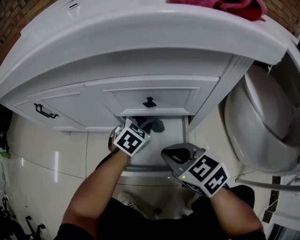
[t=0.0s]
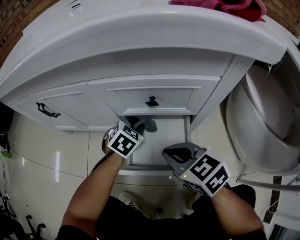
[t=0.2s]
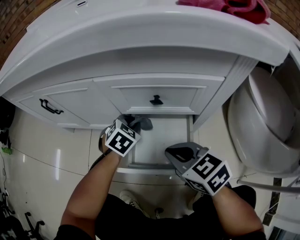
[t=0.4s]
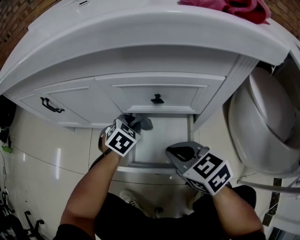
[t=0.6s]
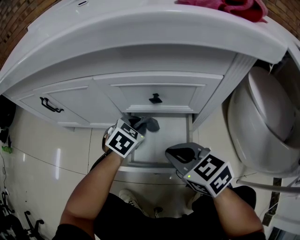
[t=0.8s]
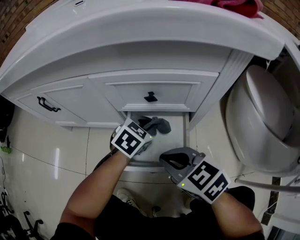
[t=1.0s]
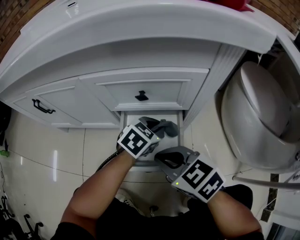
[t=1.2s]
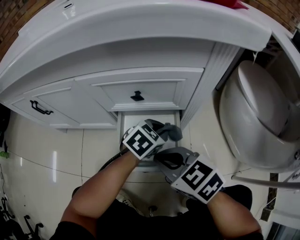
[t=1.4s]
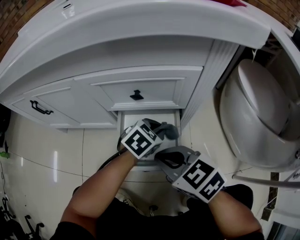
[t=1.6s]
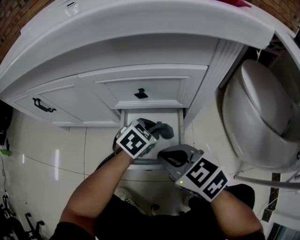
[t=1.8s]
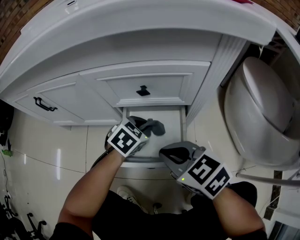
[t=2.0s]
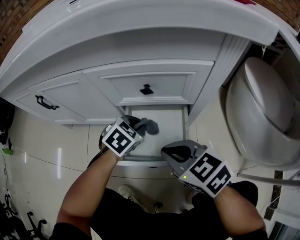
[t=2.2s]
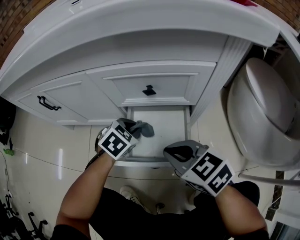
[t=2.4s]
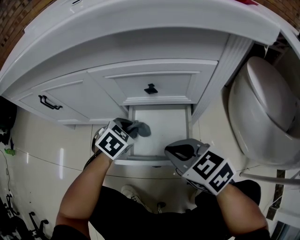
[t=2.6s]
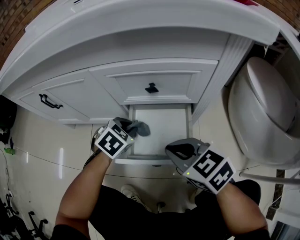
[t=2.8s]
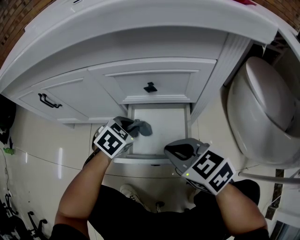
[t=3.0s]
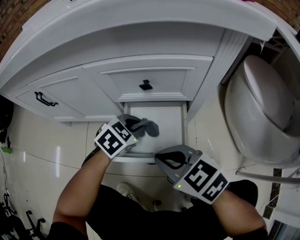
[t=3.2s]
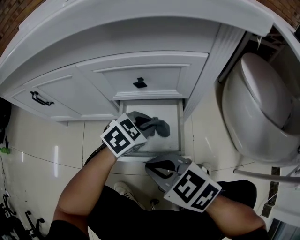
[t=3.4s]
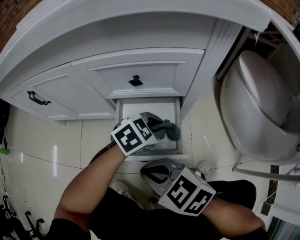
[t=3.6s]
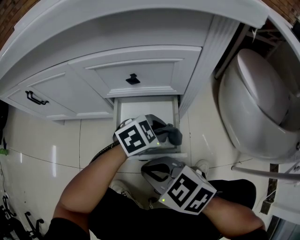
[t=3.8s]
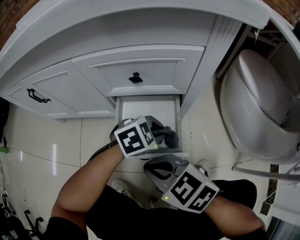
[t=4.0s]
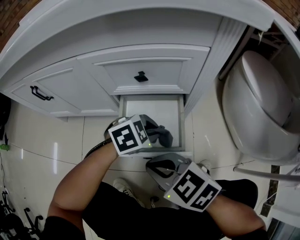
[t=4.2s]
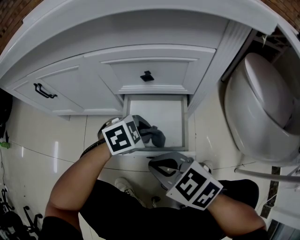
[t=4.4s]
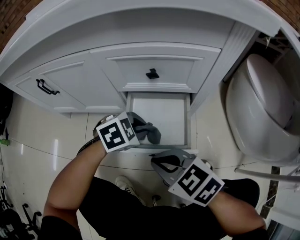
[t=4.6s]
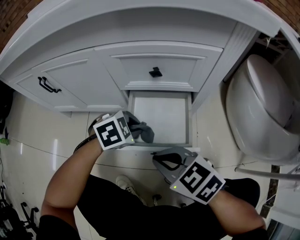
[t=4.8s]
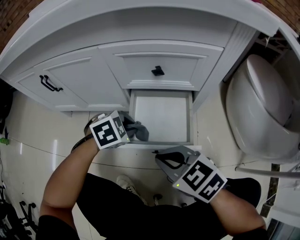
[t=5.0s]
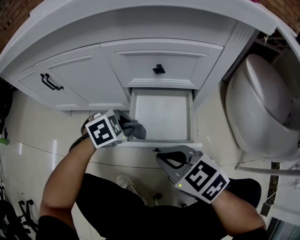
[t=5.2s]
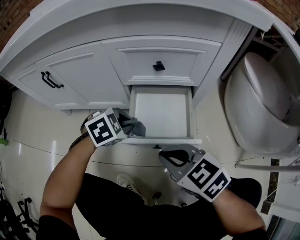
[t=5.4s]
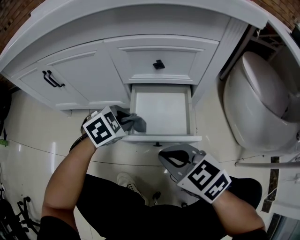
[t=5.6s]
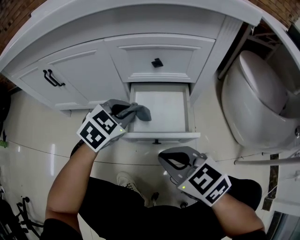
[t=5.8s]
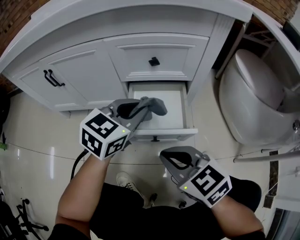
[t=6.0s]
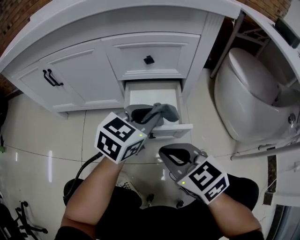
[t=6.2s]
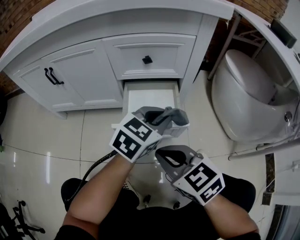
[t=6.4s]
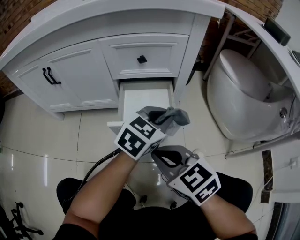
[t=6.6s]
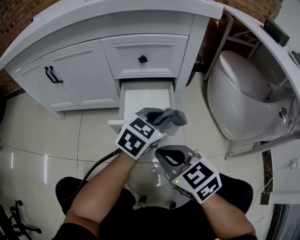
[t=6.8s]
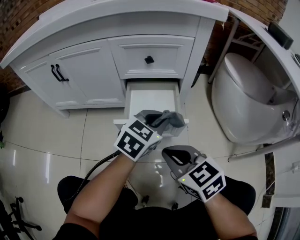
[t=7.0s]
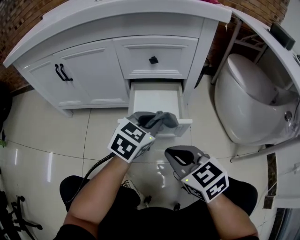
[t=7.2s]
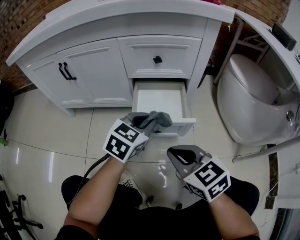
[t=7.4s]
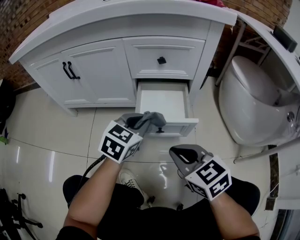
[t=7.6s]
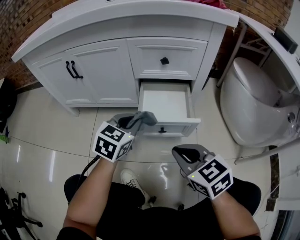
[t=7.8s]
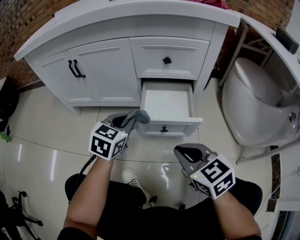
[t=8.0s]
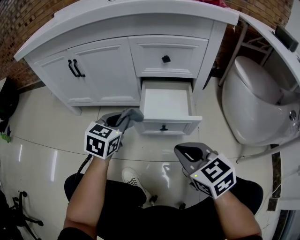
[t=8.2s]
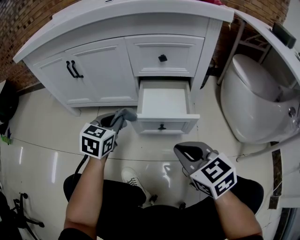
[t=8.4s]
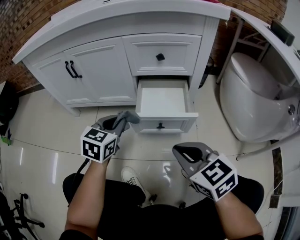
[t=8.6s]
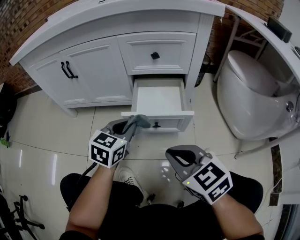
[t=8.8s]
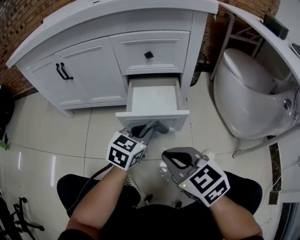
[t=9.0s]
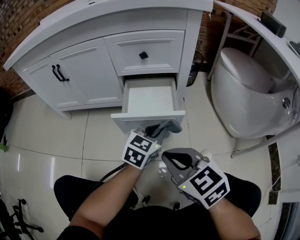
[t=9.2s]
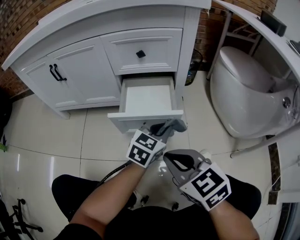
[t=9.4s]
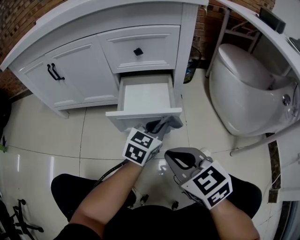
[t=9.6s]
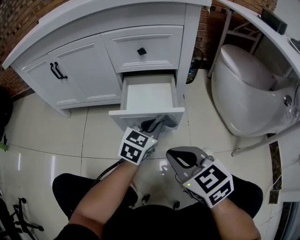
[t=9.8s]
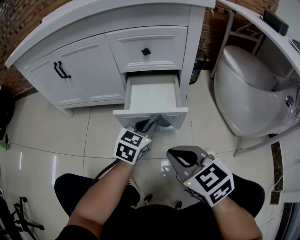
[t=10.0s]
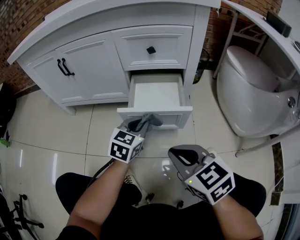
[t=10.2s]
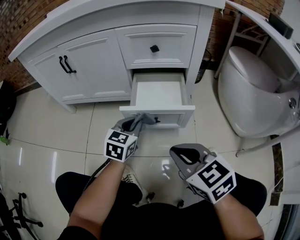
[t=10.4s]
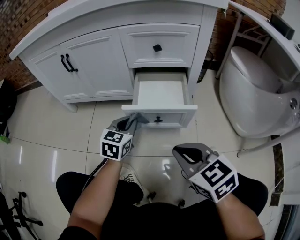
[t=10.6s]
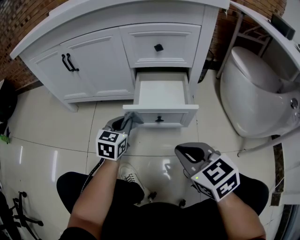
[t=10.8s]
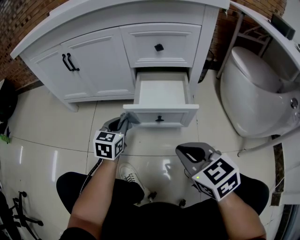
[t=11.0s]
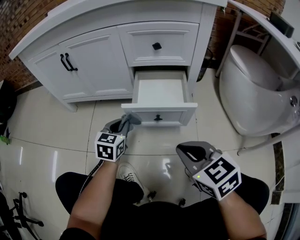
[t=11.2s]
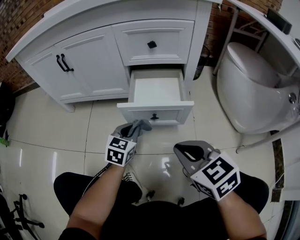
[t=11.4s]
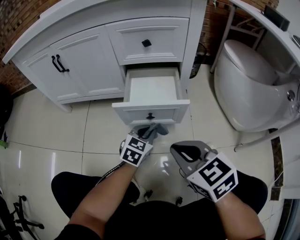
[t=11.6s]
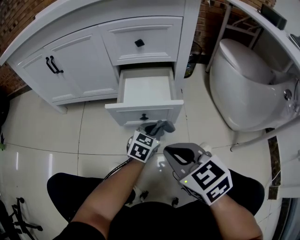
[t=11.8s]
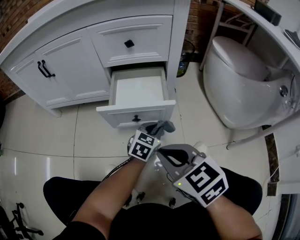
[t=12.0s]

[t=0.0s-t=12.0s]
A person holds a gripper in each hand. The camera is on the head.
t=0.0s to t=1.6s: The left gripper travels to the right and backward by approximately 10 cm.
t=1.6s to t=3.0s: The left gripper goes some 15 cm to the left.
t=3.0s to t=4.4s: The left gripper swivels some 30 degrees; the right gripper shifts by some 10 cm.
t=4.4s to t=6.0s: The left gripper moves upward, approximately 15 cm, and points its fingers roughly 30 degrees further upward. The right gripper ends up some 5 cm from where it was.
t=6.0s to t=7.6s: The left gripper shifts approximately 5 cm backward, and reaches roughly 10 cm to the right, then returns, while the right gripper ends up some 5 cm from where it was.
t=7.6s to t=9.0s: The left gripper goes to the left and returns, roughly 10 cm each way.
t=9.0s to t=10.4s: The left gripper travels to the left by roughly 5 cm.
t=10.4s to t=12.0s: The left gripper goes approximately 20 cm to the right and downward.

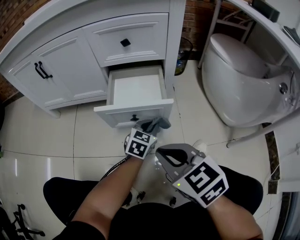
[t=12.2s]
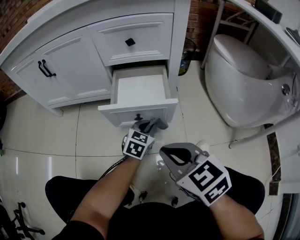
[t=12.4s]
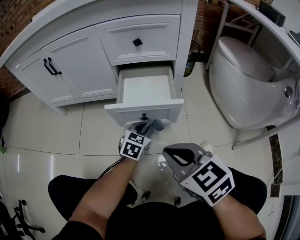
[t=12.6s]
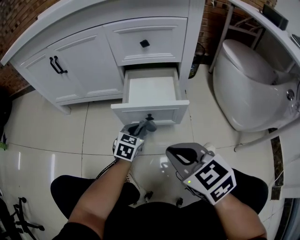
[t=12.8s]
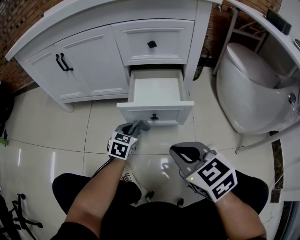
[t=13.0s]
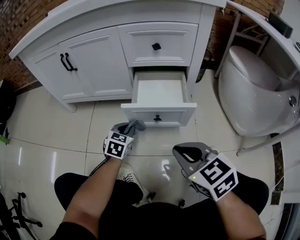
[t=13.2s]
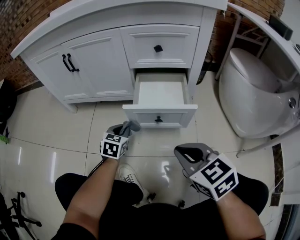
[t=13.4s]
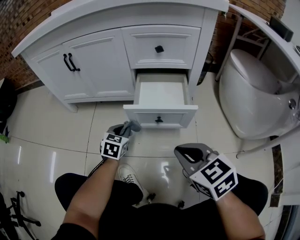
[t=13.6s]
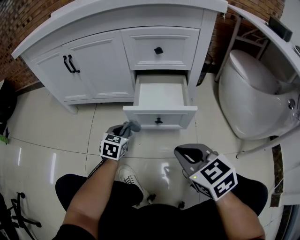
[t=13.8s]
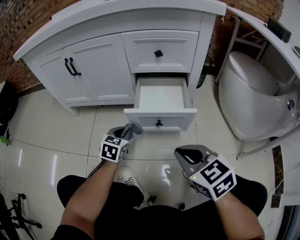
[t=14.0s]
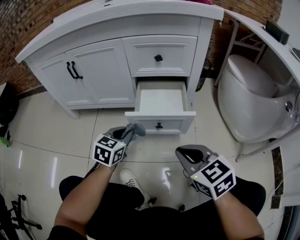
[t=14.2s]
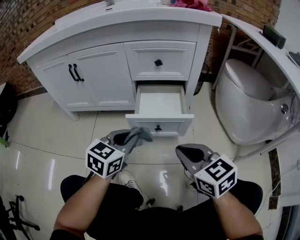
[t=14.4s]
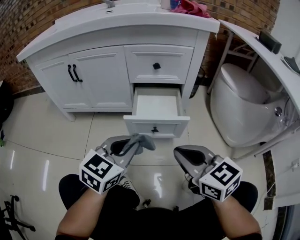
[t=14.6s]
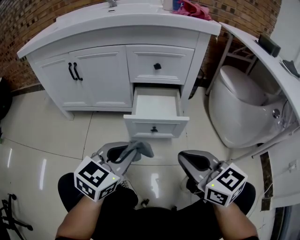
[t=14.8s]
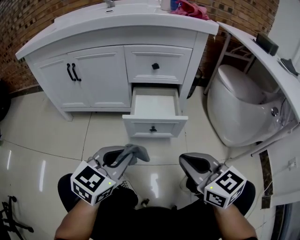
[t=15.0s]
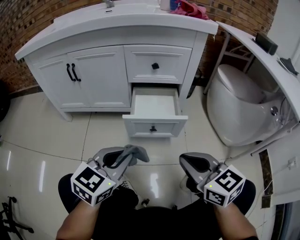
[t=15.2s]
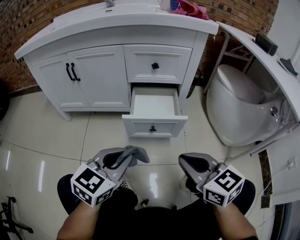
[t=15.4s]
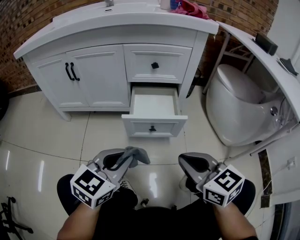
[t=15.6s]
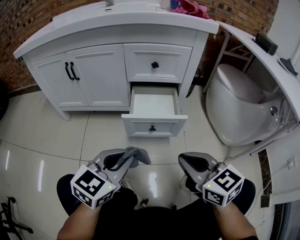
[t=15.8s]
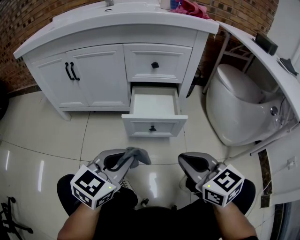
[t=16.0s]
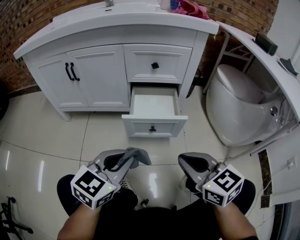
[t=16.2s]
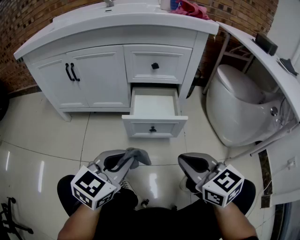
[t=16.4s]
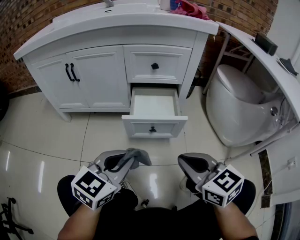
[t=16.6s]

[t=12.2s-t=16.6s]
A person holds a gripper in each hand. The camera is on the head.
t=12.2s to t=13.6s: The left gripper travels to the left by approximately 25 cm.
t=13.6s to t=15.2s: The left gripper heads upward and backward, covering some 25 cm, and swivels some 30 degrees. The right gripper shifts roughly 5 cm upward.
t=15.2s to t=16.6s: Neither gripper changes place.

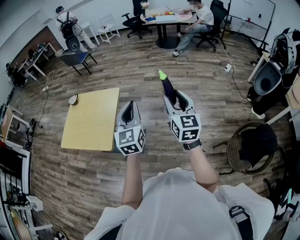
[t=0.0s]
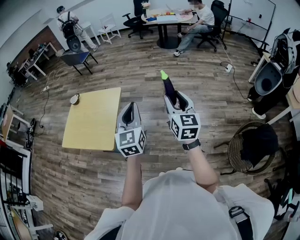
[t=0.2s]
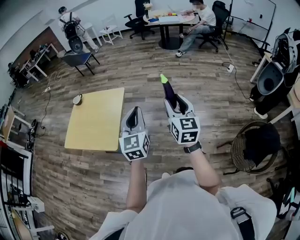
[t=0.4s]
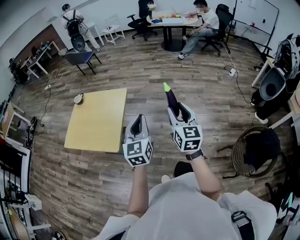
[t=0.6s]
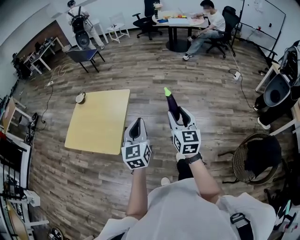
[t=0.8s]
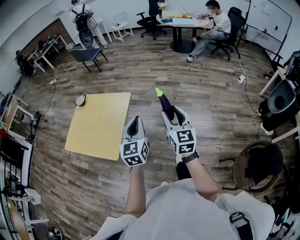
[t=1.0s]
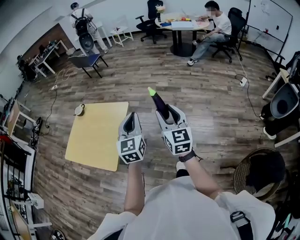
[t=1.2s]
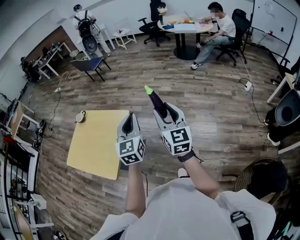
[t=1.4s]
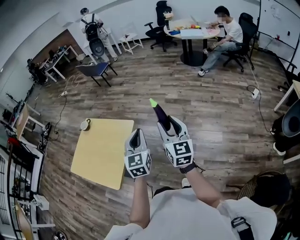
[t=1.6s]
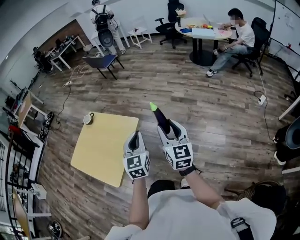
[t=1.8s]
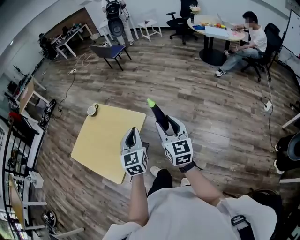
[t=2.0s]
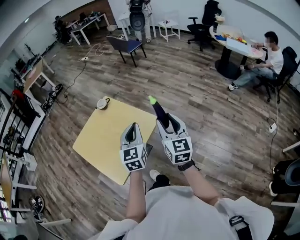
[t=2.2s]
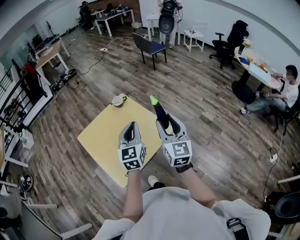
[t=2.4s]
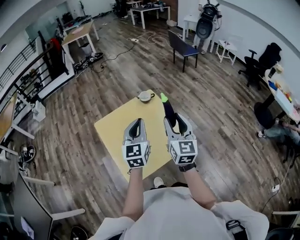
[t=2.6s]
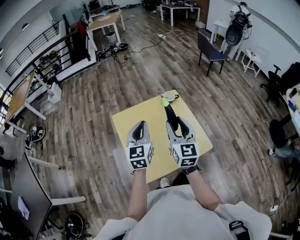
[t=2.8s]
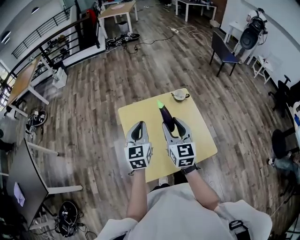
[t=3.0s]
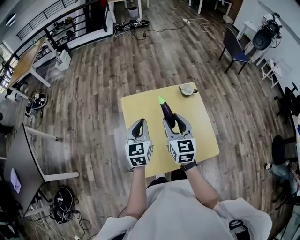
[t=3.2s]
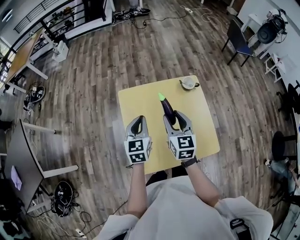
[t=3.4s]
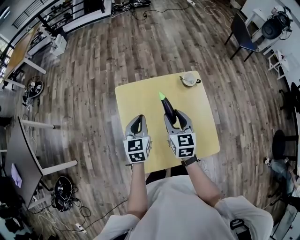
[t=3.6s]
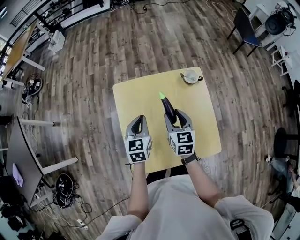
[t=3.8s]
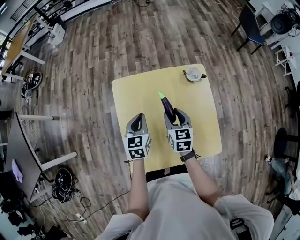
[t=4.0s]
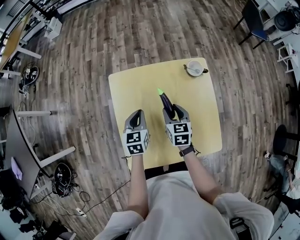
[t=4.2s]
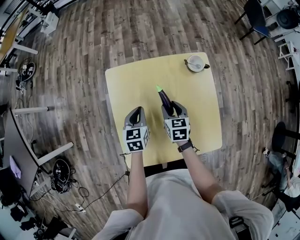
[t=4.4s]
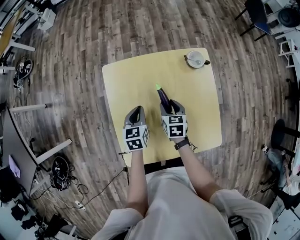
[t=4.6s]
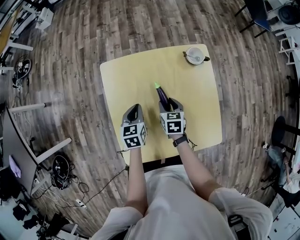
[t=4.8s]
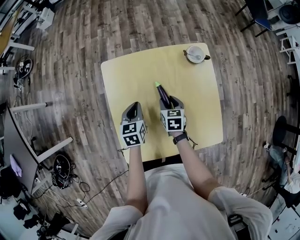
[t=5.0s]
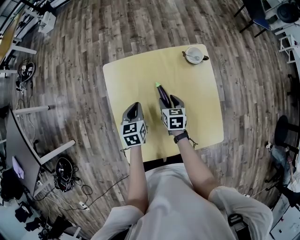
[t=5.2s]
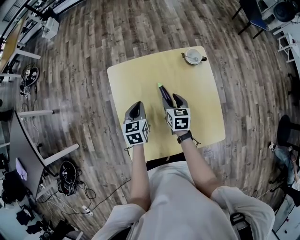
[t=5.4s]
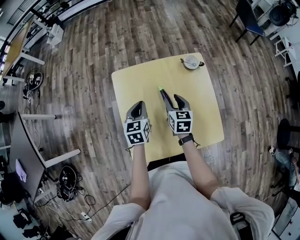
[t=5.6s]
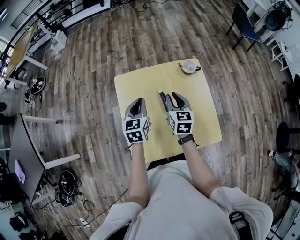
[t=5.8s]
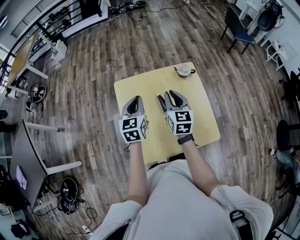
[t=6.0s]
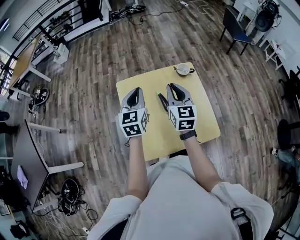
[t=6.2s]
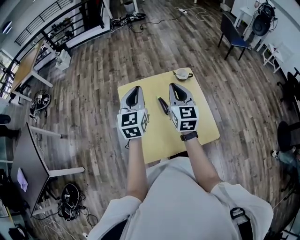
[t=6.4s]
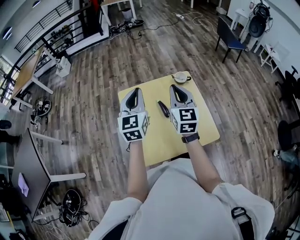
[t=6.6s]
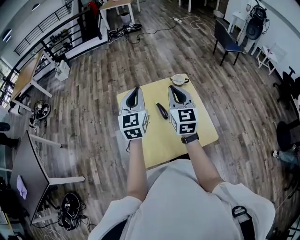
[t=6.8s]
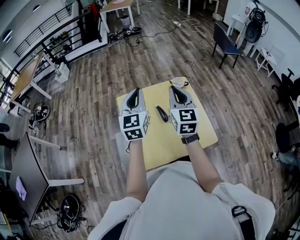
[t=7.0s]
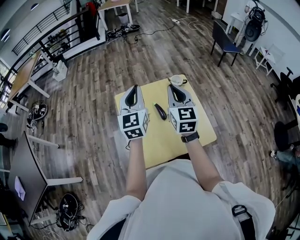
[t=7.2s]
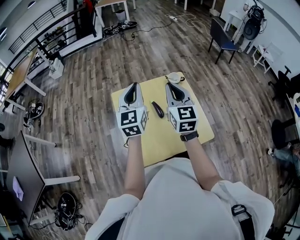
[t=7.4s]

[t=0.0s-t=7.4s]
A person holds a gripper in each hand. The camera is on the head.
t=0.0s to t=1.4s: Both grippers move forward, roughly 20 cm.
t=1.4s to t=3.0s: The pair of grippers is taken approximately 50 cm. The left gripper turns by about 60 degrees. The right gripper turns by approximately 60 degrees.
t=3.0s to t=4.4s: Both grippers travel together downward, about 30 cm. The left gripper rotates some 30 degrees, while the right gripper points its fingers roughly 30 degrees further downward.
t=4.4s to t=6.0s: The grippers both shift upward by some 20 cm. The right gripper rotates about 30 degrees, and closes its fingers.
t=6.0s to t=7.4s: Both grippers move upward, about 15 cm. The left gripper rotates about 20 degrees.
